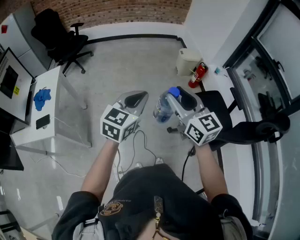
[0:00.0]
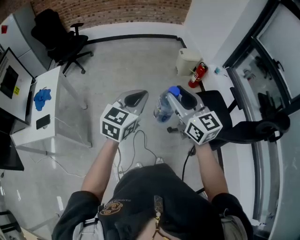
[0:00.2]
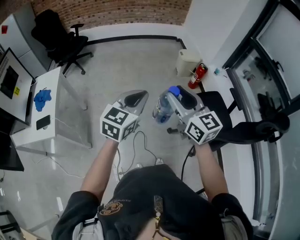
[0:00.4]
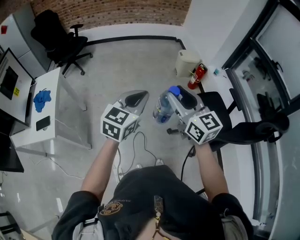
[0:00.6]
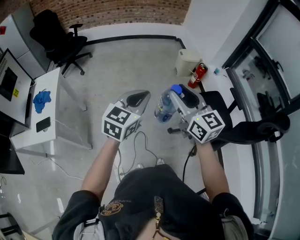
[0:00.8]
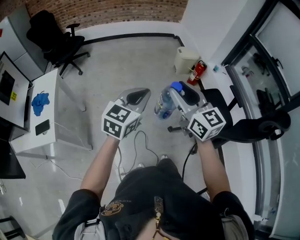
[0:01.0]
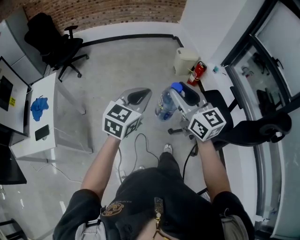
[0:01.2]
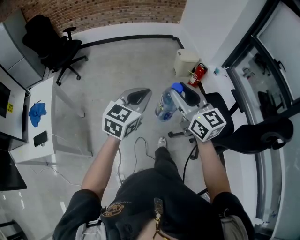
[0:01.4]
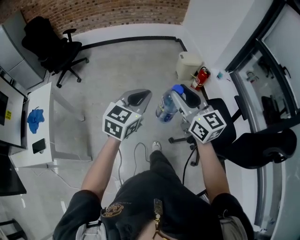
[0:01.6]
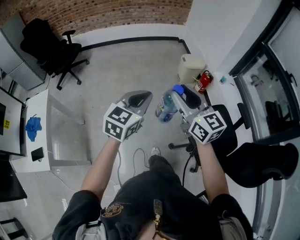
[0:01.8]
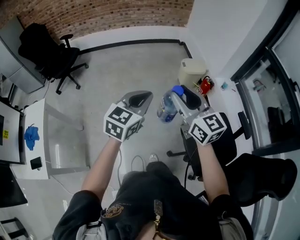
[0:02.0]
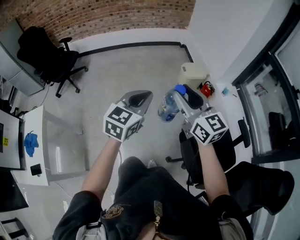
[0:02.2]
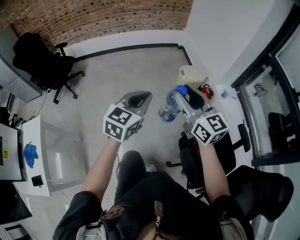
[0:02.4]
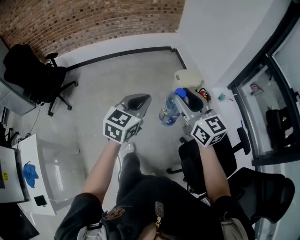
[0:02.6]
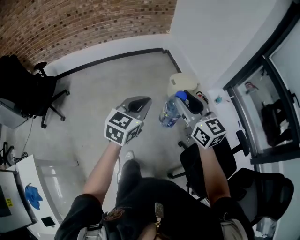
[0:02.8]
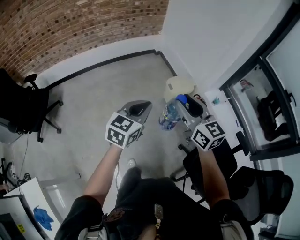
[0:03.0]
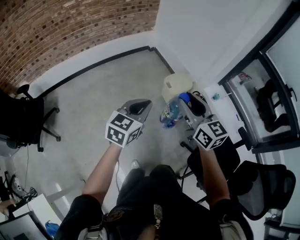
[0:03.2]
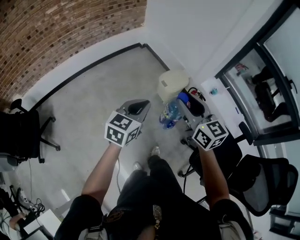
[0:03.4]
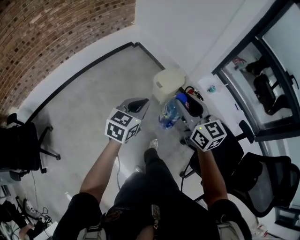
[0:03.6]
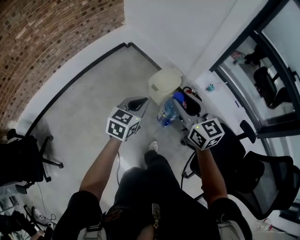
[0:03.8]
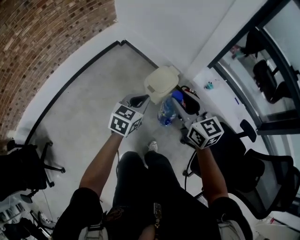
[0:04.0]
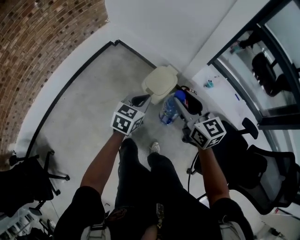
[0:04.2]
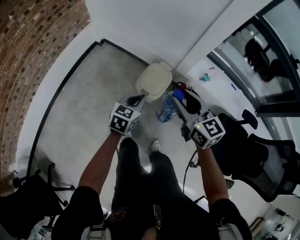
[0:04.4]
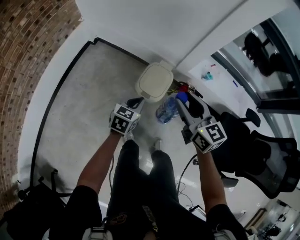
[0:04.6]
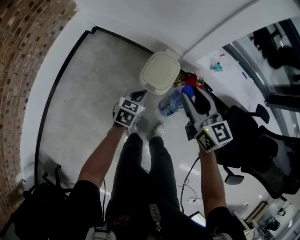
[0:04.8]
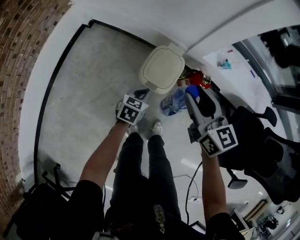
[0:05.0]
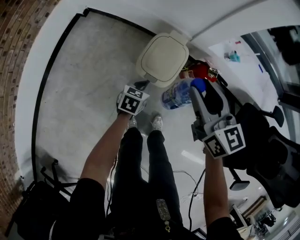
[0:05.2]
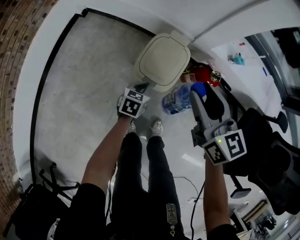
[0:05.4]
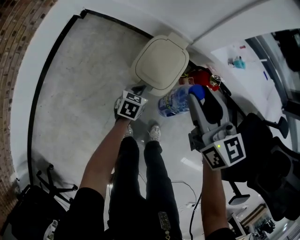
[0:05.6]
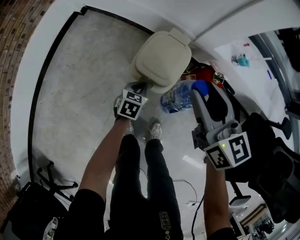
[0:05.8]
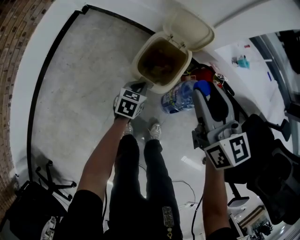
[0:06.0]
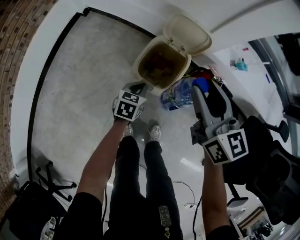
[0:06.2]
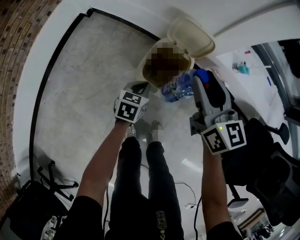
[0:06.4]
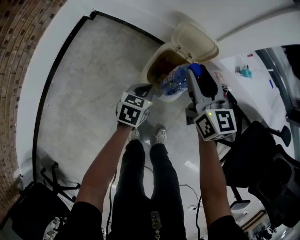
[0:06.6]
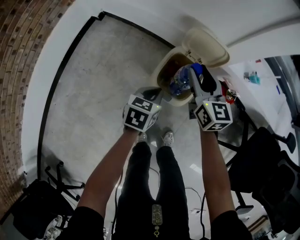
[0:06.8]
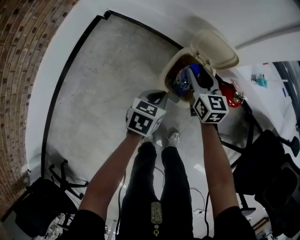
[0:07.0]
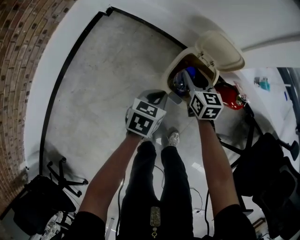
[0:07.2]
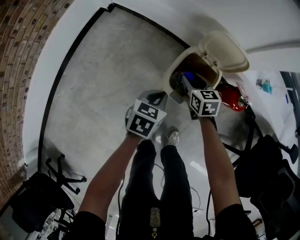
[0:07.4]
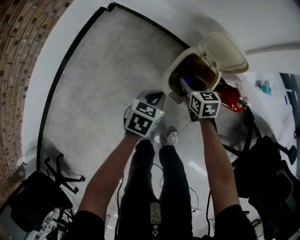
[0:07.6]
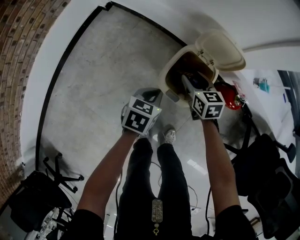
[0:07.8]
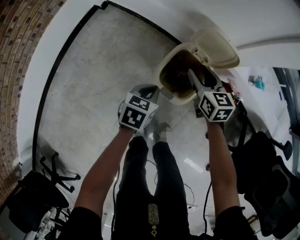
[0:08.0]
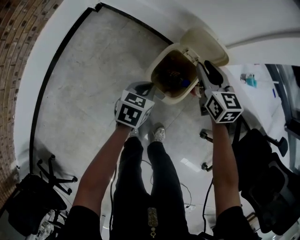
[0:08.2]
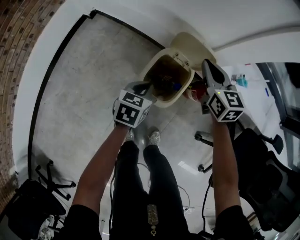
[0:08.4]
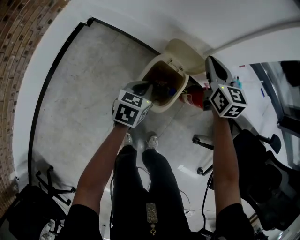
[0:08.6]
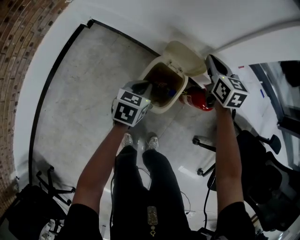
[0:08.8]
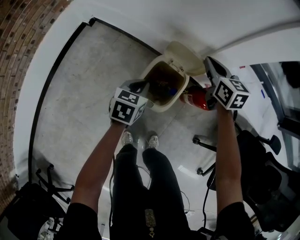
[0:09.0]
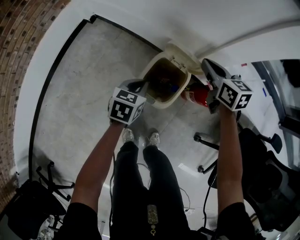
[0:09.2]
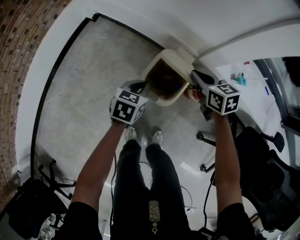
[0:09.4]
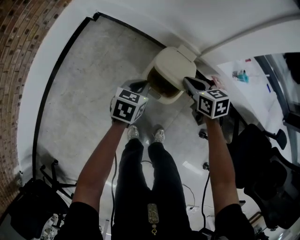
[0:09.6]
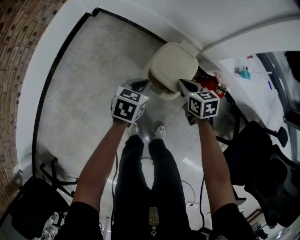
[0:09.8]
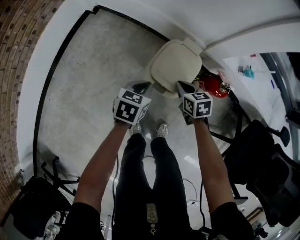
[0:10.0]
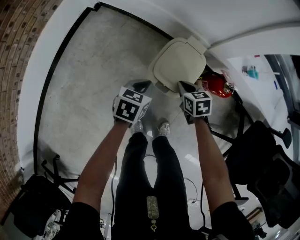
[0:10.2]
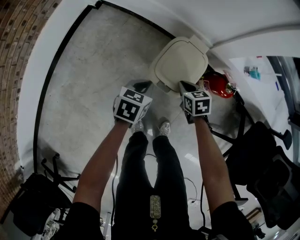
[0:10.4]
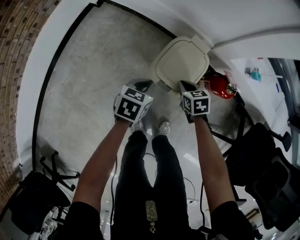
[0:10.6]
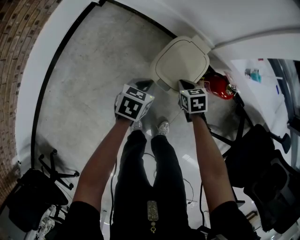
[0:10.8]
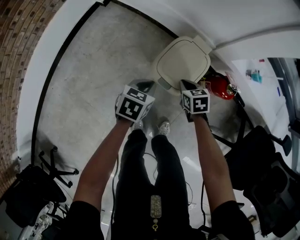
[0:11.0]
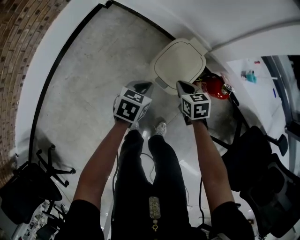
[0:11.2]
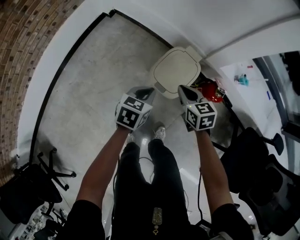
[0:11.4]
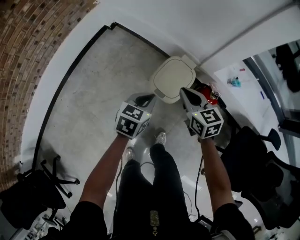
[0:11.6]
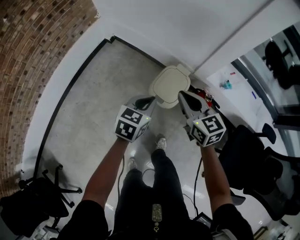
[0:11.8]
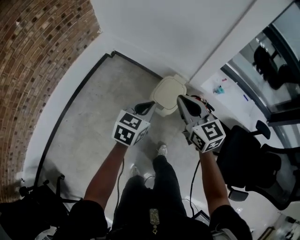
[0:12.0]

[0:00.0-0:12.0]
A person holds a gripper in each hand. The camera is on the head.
0:00.0 to 0:01.6: Both grippers travel together forward, approximately 15 cm.
0:01.6 to 0:03.0: The pair of grippers is taken forward, about 50 cm.
0:03.0 to 0:04.4: The left gripper ends up some 50 cm from where it was, and swivels approximately 40 degrees. The right gripper shifts by some 40 cm, and swivels roughly 30 degrees.
0:04.4 to 0:06.0: The right gripper shifts approximately 25 cm downward and forward; the left gripper is displaced downward by approximately 40 cm.
0:06.0 to 0:07.6: The right gripper is displaced downward and to the left by about 30 cm, and swivels about 30 degrees, while the left gripper heads upward and to the left, covering approximately 10 cm.
0:07.6 to 0:09.0: The left gripper travels forward and upward by approximately 10 cm. Meanwhile the right gripper heads upward, to the right and forward, covering roughly 25 cm, and closes its fingers.
0:09.0 to 0:10.4: The right gripper moves downward, backward and to the left, about 30 cm, and rotates roughly 30 degrees; the left gripper heads backward and downward, covering roughly 10 cm.
0:10.4 to 0:12.0: Both grippers travel together upward, about 40 cm. The left gripper turns by roughly 20 degrees. The right gripper angles its fingers upward, by about 40 degrees.

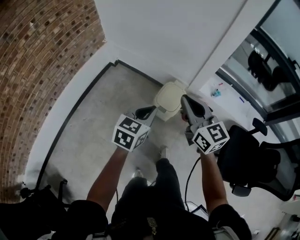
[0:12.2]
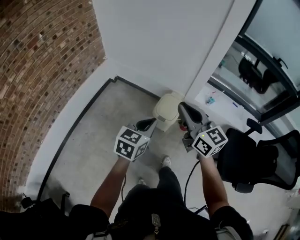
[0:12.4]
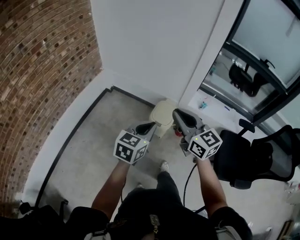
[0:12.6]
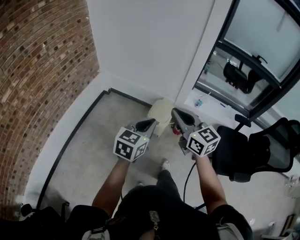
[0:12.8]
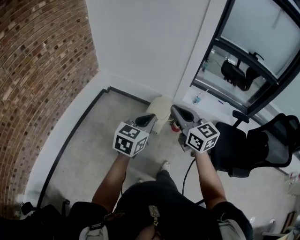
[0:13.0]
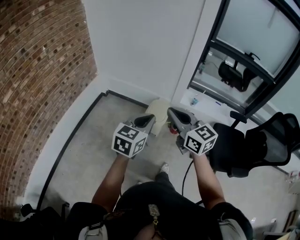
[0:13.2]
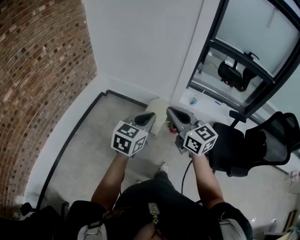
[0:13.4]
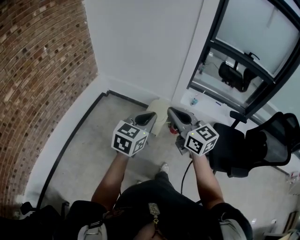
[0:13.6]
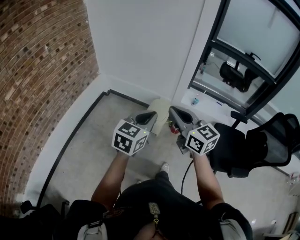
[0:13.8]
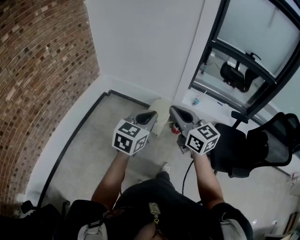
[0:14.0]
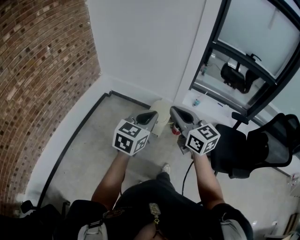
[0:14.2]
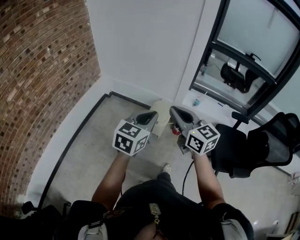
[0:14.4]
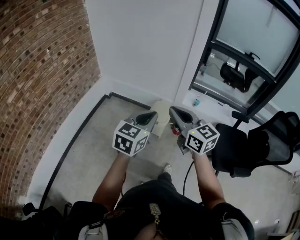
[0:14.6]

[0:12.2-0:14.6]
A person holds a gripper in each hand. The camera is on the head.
0:12.2 to 0:13.4: The two grippers go approximately 25 cm backward and upward.
0:13.4 to 0:14.6: There are only small adjustments of the grippers.

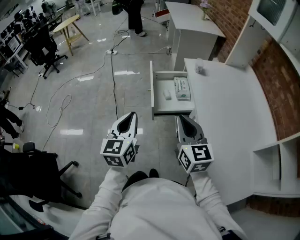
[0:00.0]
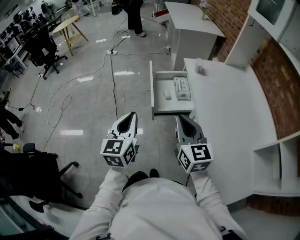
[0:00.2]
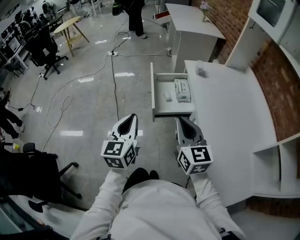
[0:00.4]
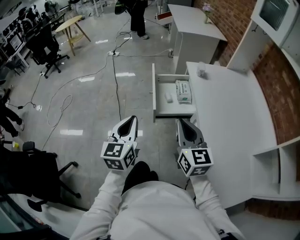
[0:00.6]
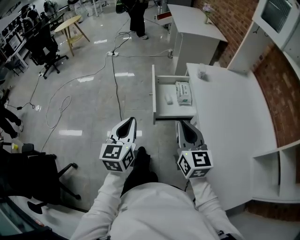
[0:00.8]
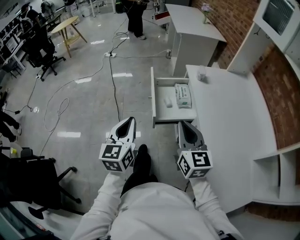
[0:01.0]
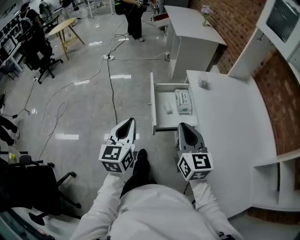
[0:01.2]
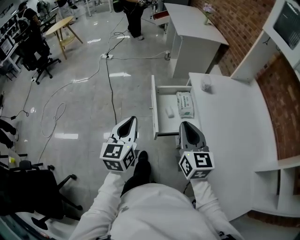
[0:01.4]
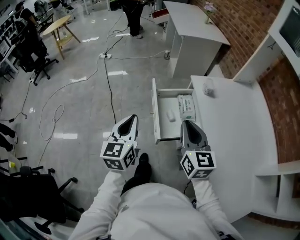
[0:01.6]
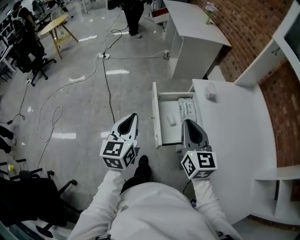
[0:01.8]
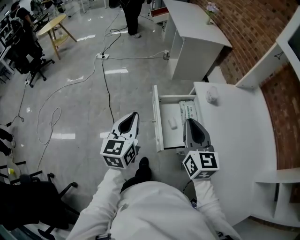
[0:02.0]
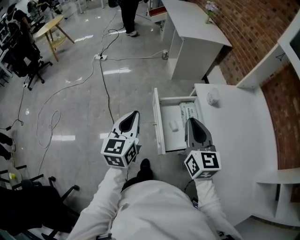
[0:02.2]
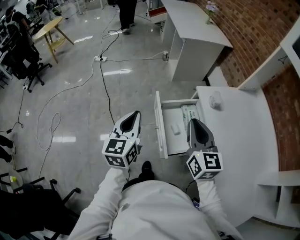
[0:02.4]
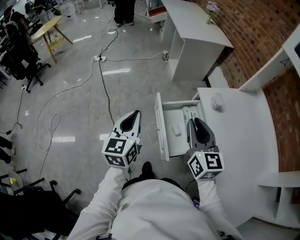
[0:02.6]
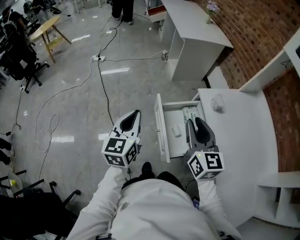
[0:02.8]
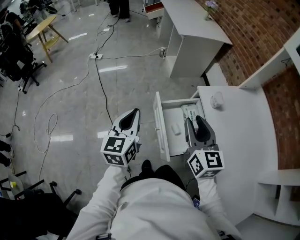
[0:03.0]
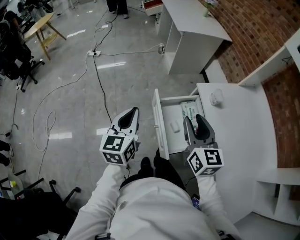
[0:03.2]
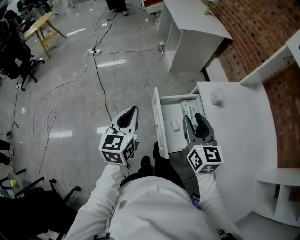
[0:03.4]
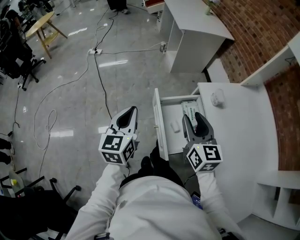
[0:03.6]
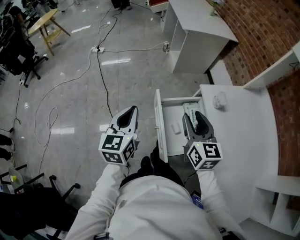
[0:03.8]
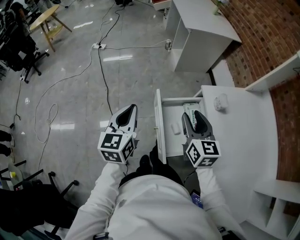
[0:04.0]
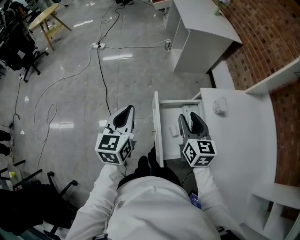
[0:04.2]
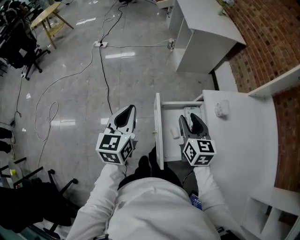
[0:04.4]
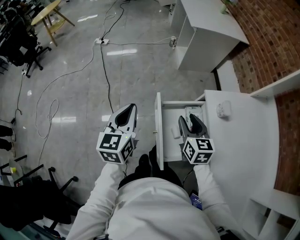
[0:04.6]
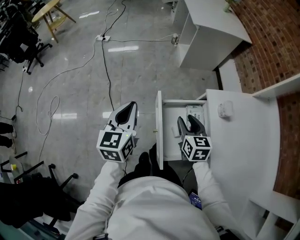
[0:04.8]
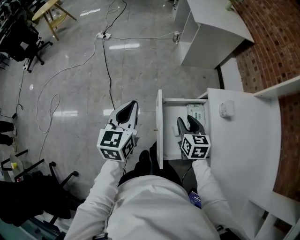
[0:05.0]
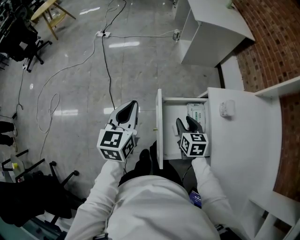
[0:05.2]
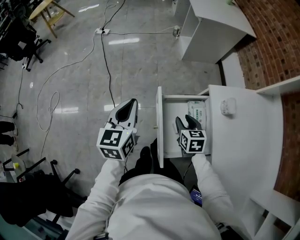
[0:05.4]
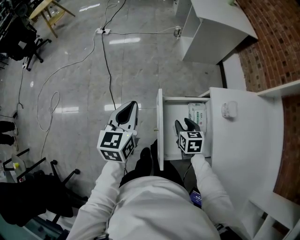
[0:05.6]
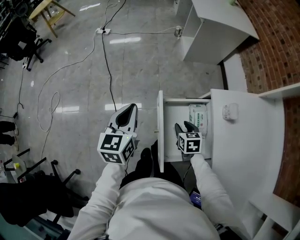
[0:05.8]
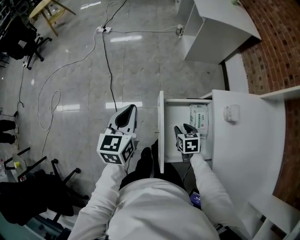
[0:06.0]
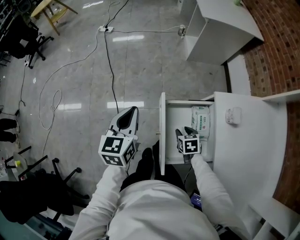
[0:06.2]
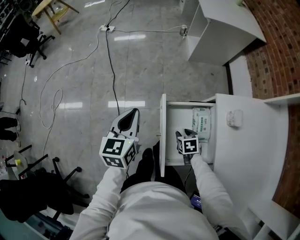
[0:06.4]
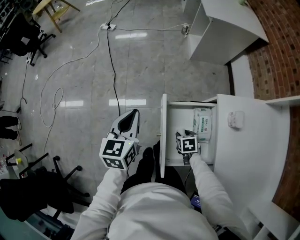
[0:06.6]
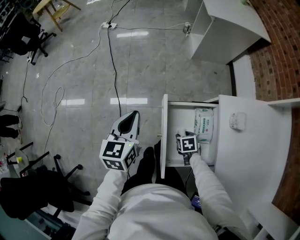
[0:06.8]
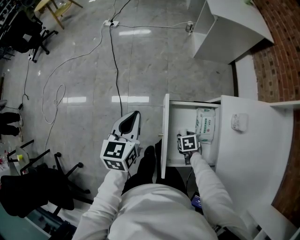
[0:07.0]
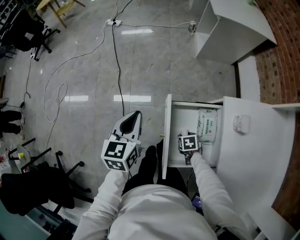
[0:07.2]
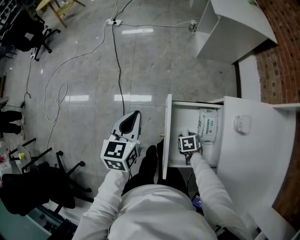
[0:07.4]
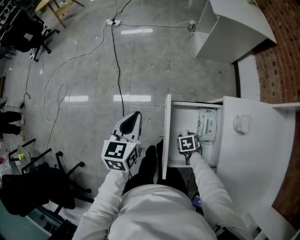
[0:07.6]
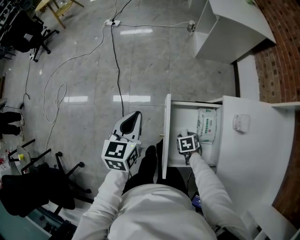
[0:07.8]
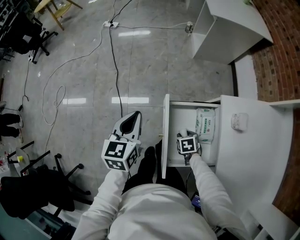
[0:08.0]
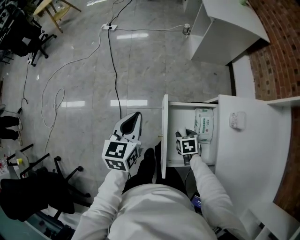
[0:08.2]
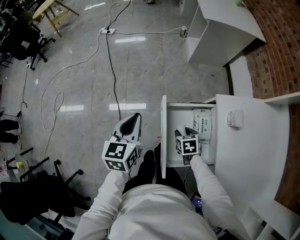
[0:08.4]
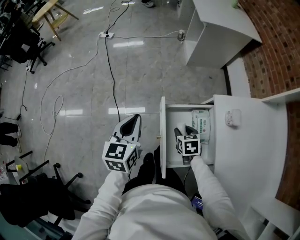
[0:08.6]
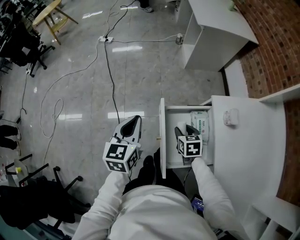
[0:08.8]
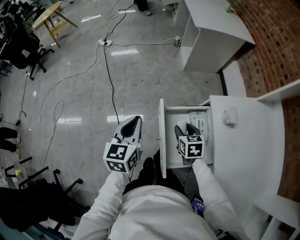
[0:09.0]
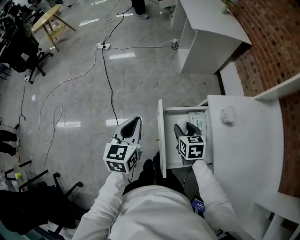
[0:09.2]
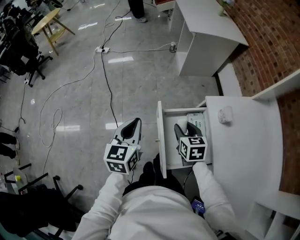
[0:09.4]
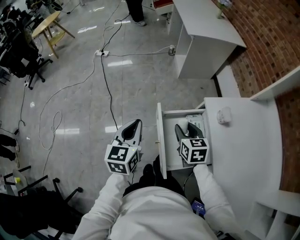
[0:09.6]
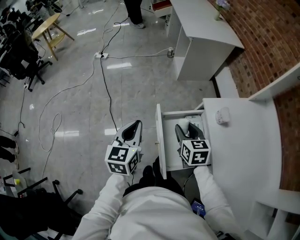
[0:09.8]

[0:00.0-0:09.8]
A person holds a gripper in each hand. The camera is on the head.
0:00.0 to 0:01.4: The grippers both shift forward by some 15 cm.
0:01.4 to 0:02.8: The grippers both shift forward by roughly 20 cm. The right gripper opens its fingers.
0:02.8 to 0:04.2: The left gripper shifts by about 5 cm. The right gripper is displaced downward and forward by approximately 10 cm.
0:04.2 to 0:05.6: The right gripper is displaced downward by about 20 cm, and swivels some 30 degrees; the left gripper changes place by about 5 cm.
0:05.6 to 0:07.0: The right gripper travels downward by about 15 cm, and turns by about 30 degrees.
0:07.0 to 0:08.4: The right gripper heads upward, covering approximately 5 cm.
0:08.4 to 0:09.8: The right gripper goes some 20 cm upward, and changes its angle by some 30 degrees.
